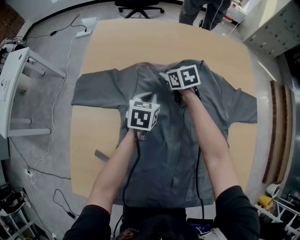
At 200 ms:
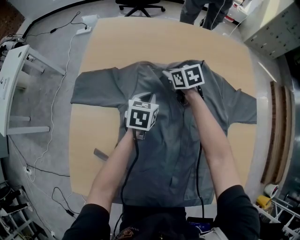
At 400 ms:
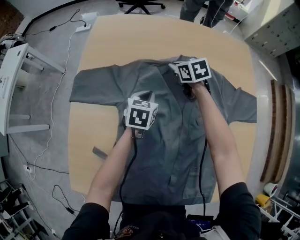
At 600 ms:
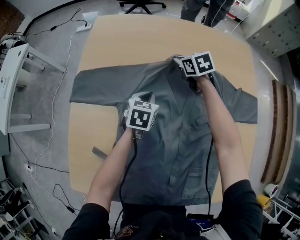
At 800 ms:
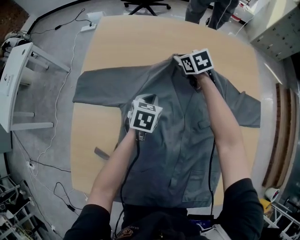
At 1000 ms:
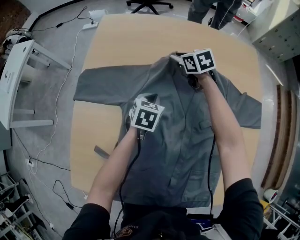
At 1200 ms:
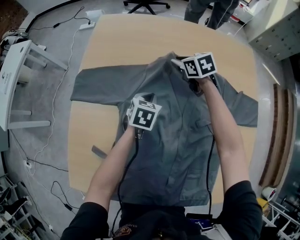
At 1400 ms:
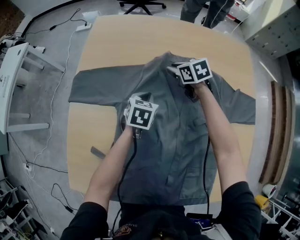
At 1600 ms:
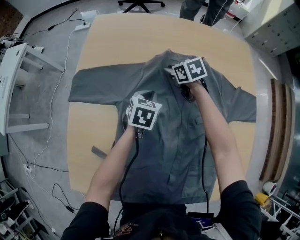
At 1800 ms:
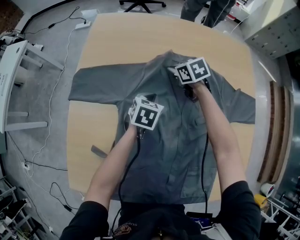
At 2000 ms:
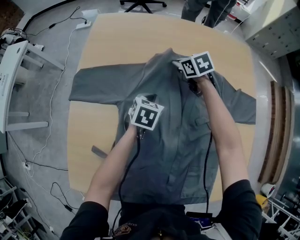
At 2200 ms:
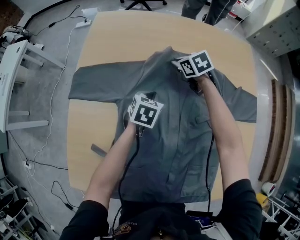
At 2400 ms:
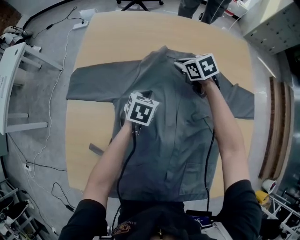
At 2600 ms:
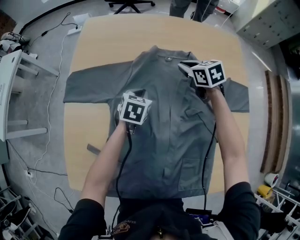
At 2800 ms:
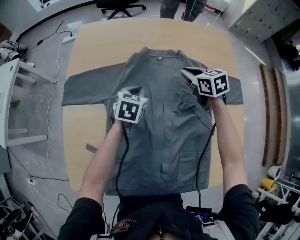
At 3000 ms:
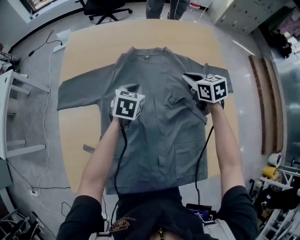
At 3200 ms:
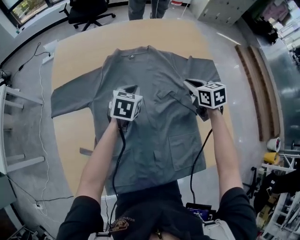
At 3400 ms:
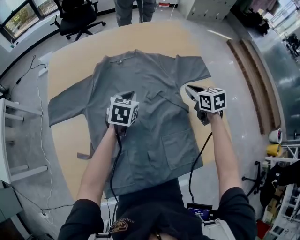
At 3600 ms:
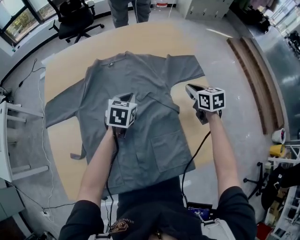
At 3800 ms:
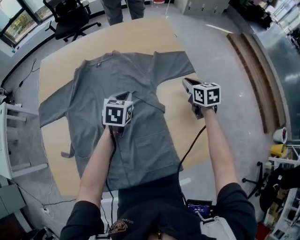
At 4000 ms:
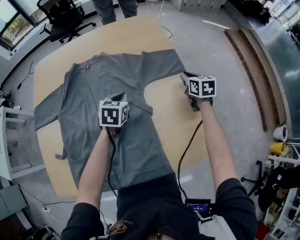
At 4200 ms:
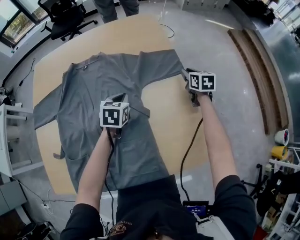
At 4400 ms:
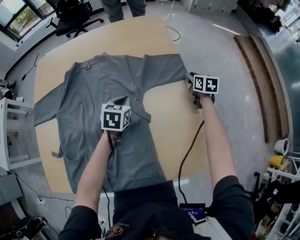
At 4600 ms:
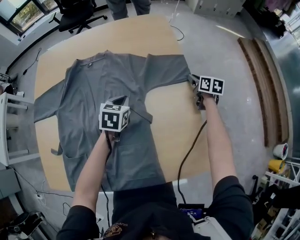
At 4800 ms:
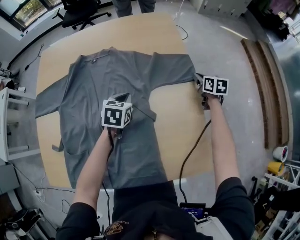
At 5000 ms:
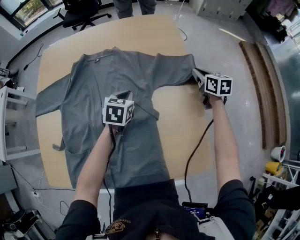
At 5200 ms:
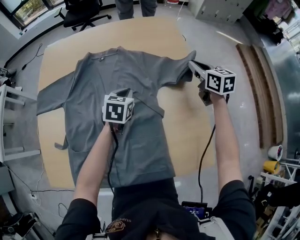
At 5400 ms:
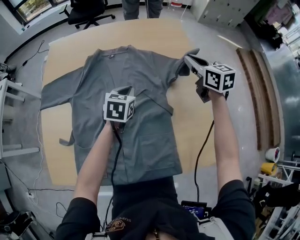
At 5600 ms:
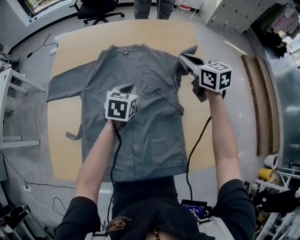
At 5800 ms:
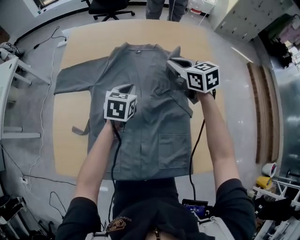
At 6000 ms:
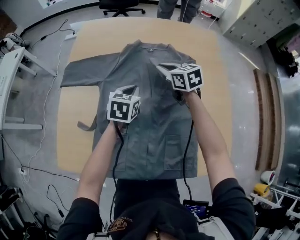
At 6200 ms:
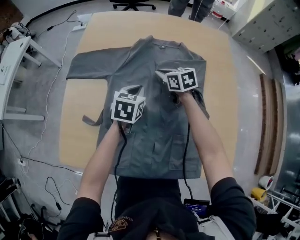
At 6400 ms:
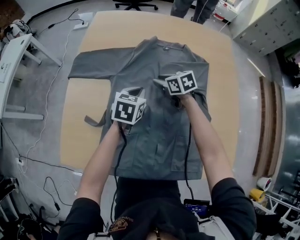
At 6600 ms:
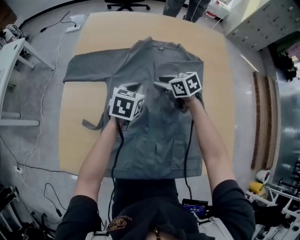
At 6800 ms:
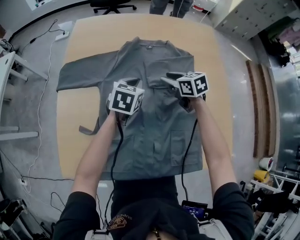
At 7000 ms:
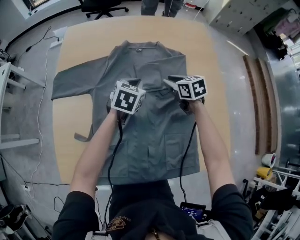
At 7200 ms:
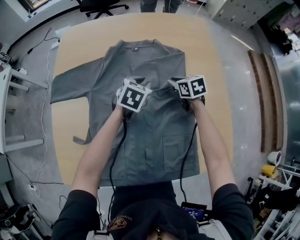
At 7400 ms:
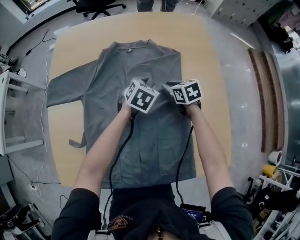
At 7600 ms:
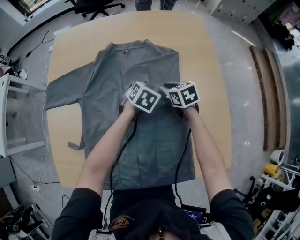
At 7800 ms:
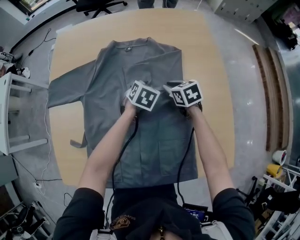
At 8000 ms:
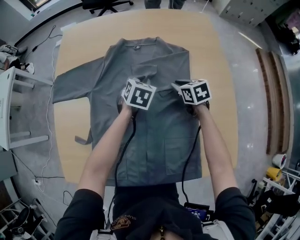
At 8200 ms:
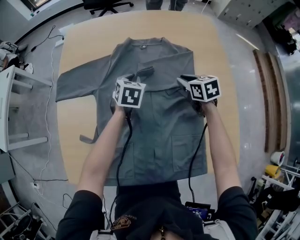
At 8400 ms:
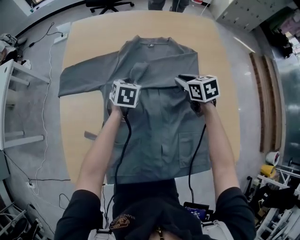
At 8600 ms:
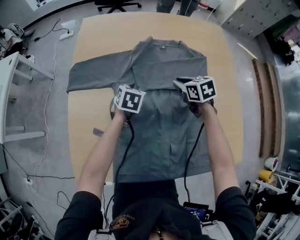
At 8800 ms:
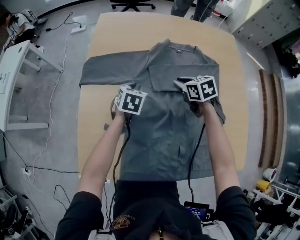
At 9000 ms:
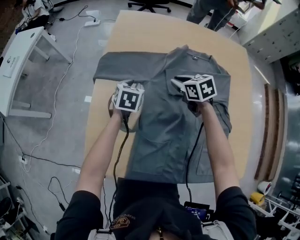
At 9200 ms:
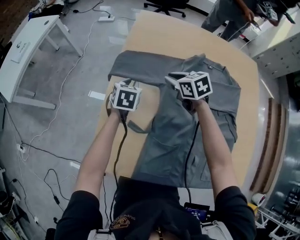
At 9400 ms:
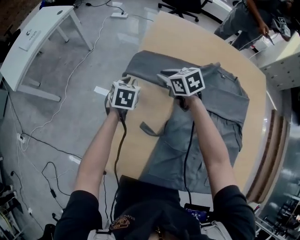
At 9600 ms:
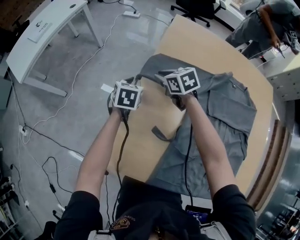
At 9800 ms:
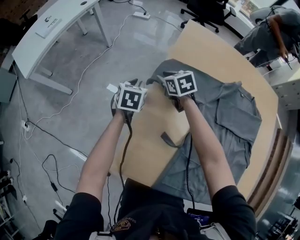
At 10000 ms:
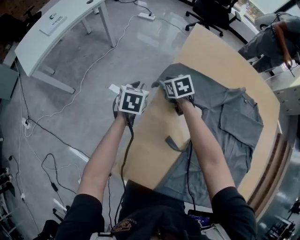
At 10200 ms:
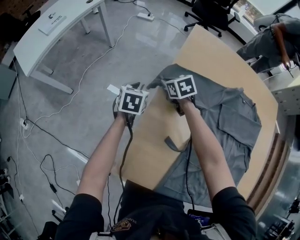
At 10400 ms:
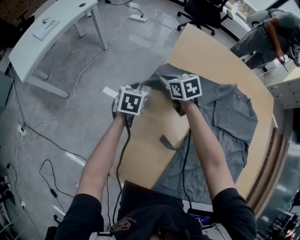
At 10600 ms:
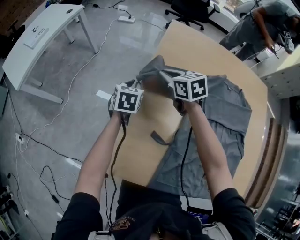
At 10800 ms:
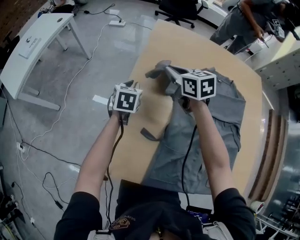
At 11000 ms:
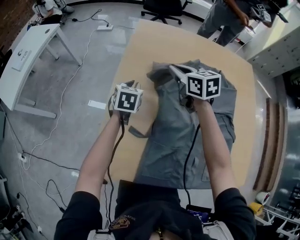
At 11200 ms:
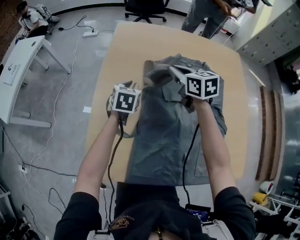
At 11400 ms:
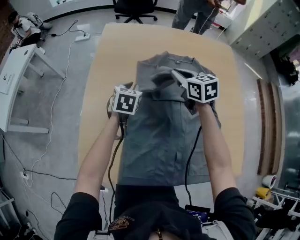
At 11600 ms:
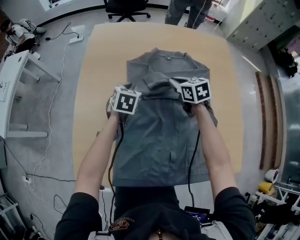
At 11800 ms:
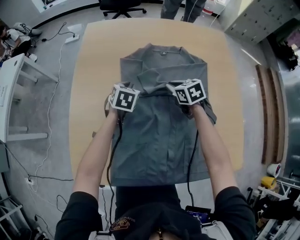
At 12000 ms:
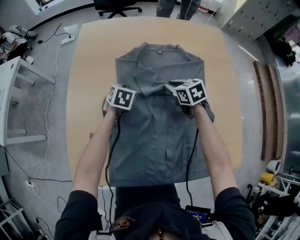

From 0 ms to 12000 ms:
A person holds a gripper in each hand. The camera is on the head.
From 1600 ms to 3000 ms: The left gripper is displaced upward by roughly 5 cm. The right gripper moves to the right, backward and upward, about 25 cm.
From 3000 ms to 4400 ms: The grippers both shift to the right by roughly 30 cm. The right gripper swivels about 30 degrees.
From 4400 ms to 6000 ms: The right gripper shifts some 50 cm to the left, and swivels roughly 40 degrees; the left gripper shifts about 25 cm to the left.
From 6000 ms to 7600 ms: The left gripper moves to the right and downward, roughly 20 cm, turns by about 30 degrees, and opens up. The right gripper heads downward, to the right and backward, covering roughly 20 cm.
From 7600 ms to 9000 ms: Both grippers travel together to the left, some 30 cm. The left gripper turns by some 30 degrees.
From 9000 ms to 10400 ms: Both grippers move to the left and forward, some 30 cm.
From 10400 ms to 12000 ms: Both grippers travel together to the right, roughly 40 cm. The right gripper changes its angle by roughly 20 degrees, while the left gripper swivels about 30 degrees.

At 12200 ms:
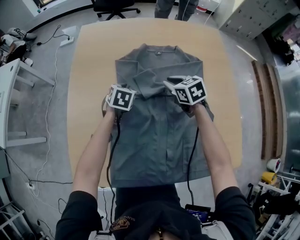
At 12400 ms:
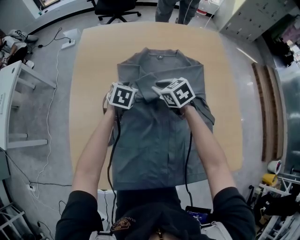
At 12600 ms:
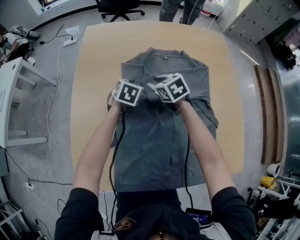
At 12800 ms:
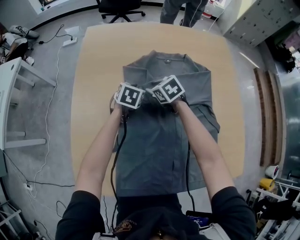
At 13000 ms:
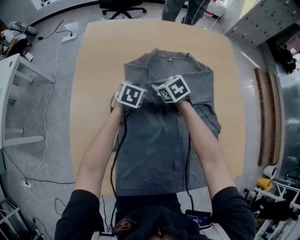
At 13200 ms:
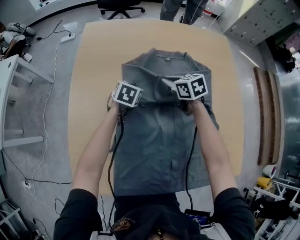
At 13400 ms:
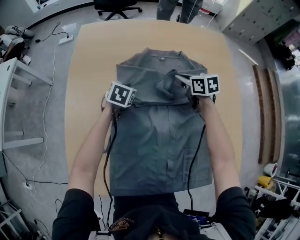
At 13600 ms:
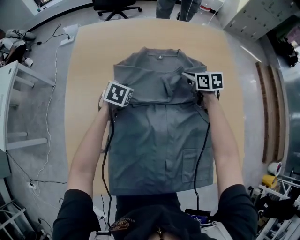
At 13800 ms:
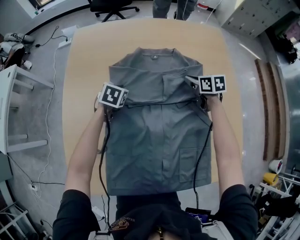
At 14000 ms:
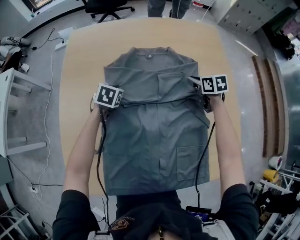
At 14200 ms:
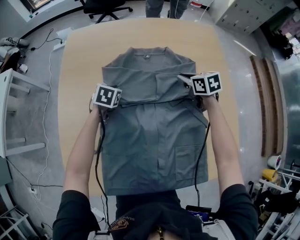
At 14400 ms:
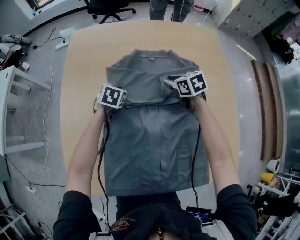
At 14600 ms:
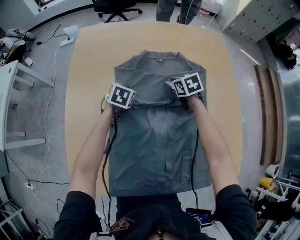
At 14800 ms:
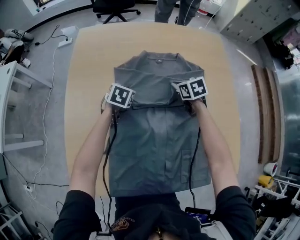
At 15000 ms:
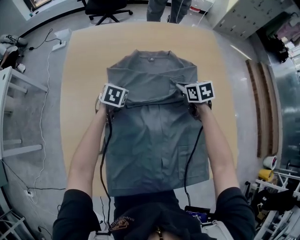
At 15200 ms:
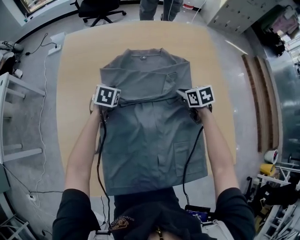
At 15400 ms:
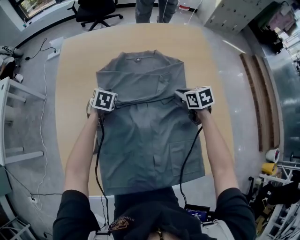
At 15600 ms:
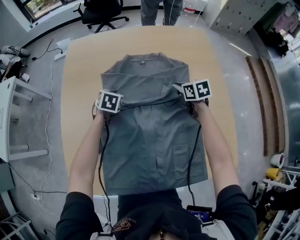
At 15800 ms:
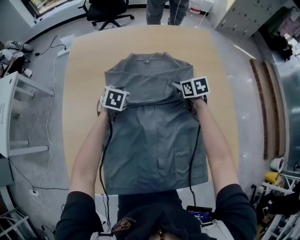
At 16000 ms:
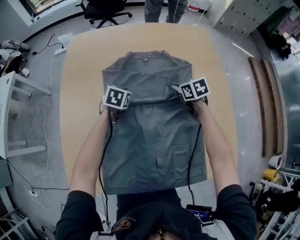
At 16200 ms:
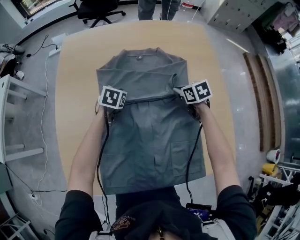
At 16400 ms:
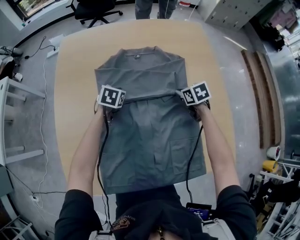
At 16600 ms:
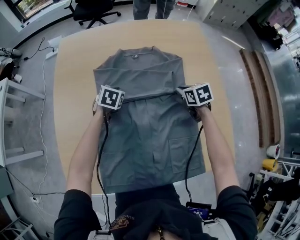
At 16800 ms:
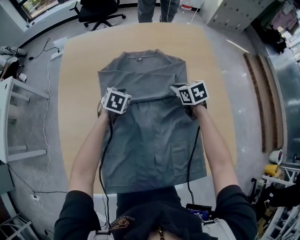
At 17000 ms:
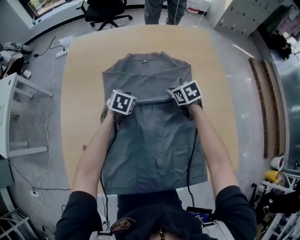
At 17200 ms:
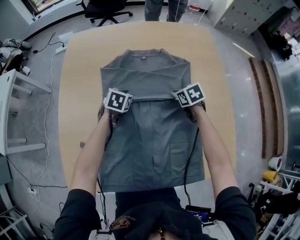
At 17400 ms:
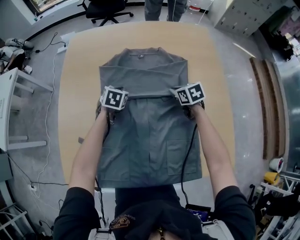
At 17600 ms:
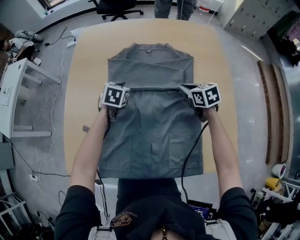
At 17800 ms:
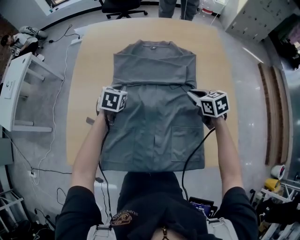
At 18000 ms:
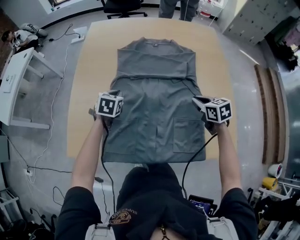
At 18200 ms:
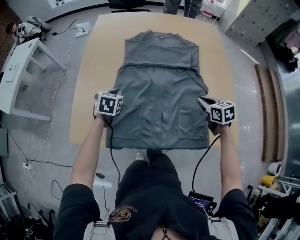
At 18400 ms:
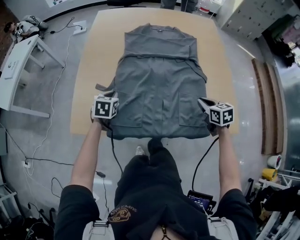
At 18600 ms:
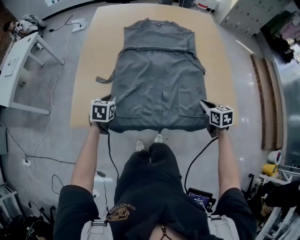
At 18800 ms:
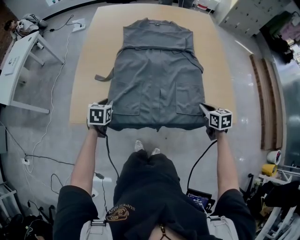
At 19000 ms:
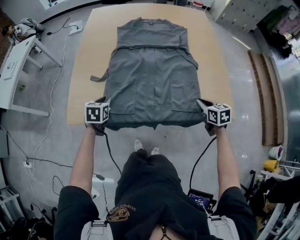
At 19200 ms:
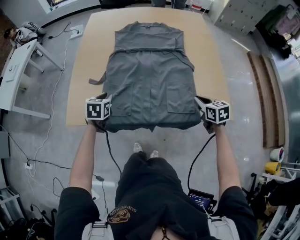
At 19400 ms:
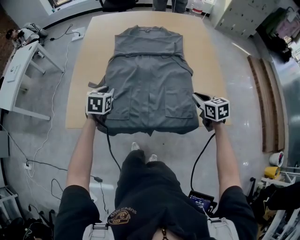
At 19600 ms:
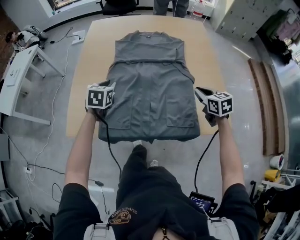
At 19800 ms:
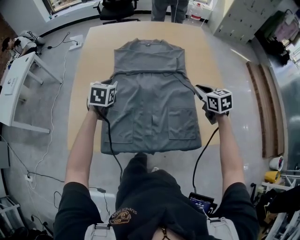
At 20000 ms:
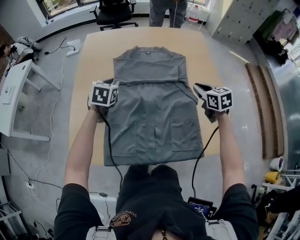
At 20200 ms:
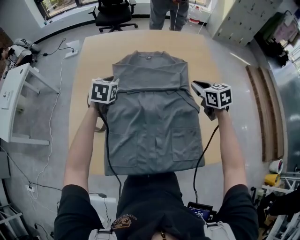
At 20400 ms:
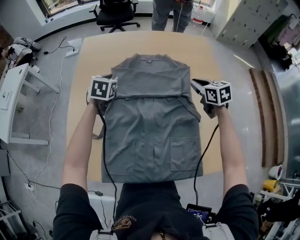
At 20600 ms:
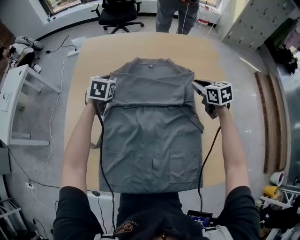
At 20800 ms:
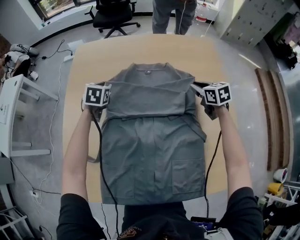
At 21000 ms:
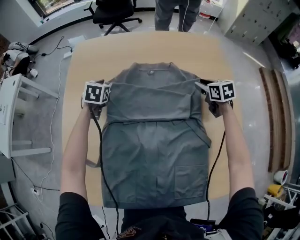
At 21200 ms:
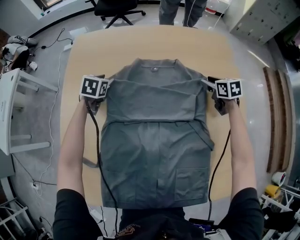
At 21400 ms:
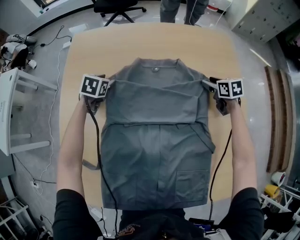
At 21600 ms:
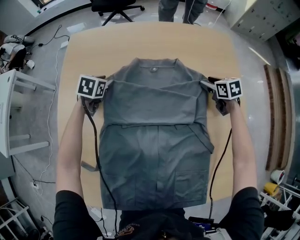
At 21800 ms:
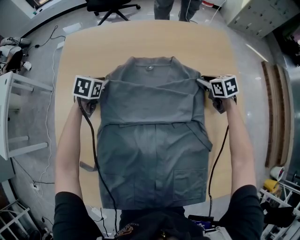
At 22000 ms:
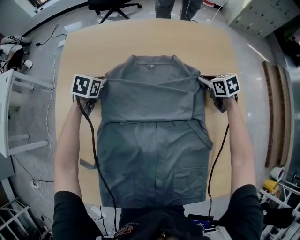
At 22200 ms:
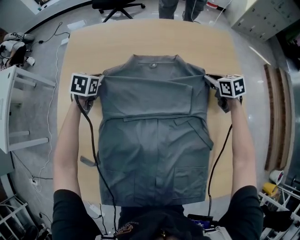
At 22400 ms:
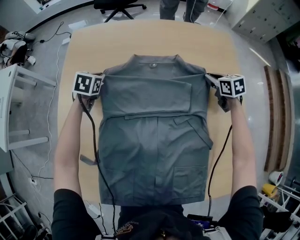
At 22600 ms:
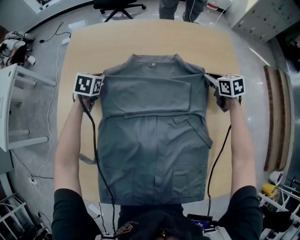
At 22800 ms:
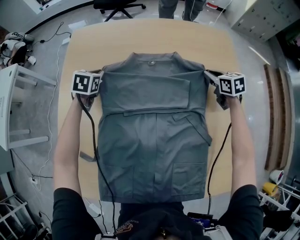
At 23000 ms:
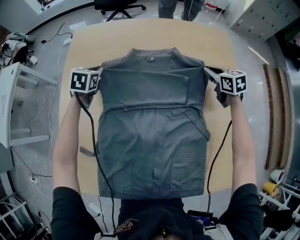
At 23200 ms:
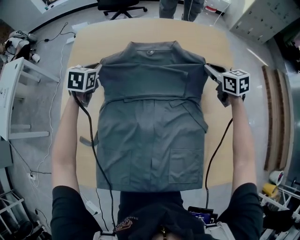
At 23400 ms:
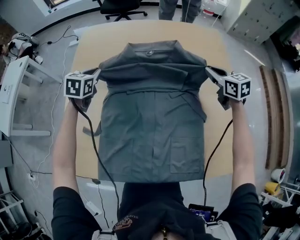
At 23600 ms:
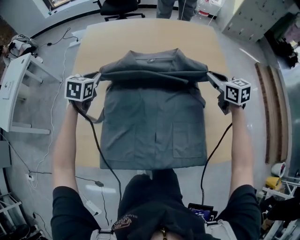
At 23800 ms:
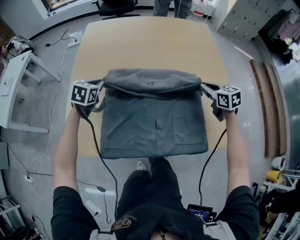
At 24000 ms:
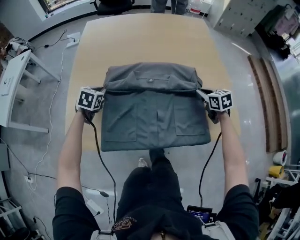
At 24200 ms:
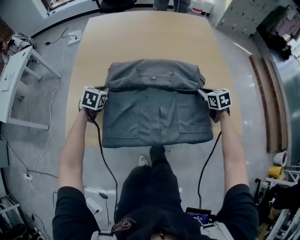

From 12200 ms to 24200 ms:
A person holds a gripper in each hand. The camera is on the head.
From 12200 ms to 13800 ms: The right gripper travels to the right by approximately 15 cm, and changes its angle by about 20 degrees.
From 13800 ms to 15200 ms: The right gripper is displaced backward by about 10 cm, and goes to the left and returns, some 10 cm each way.
From 15200 ms to 16600 ms: The left gripper changes place by approximately 5 cm.
From 16600 ms to 18200 ms: The right gripper shifts some 20 cm backward, while the left gripper is displaced backward and to the left by about 25 cm.
From 18200 ms to 19800 ms: Both grippers move upward, roughly 5 cm. The right gripper travels backward and back again, roughly 15 cm each way, while the left gripper travels backward and back again, roughly 15 cm each way.
From 19800 ms to 21200 ms: Both grippers travel together forward, roughly 35 cm. The left gripper opens its fingers; the right gripper opens its fingers.
From 21200 ms to 22600 ms: The left gripper closes up. Meanwhile the right gripper closes up.
From 22600 ms to 24200 ms: The two grippers go about 35 cm backward.
